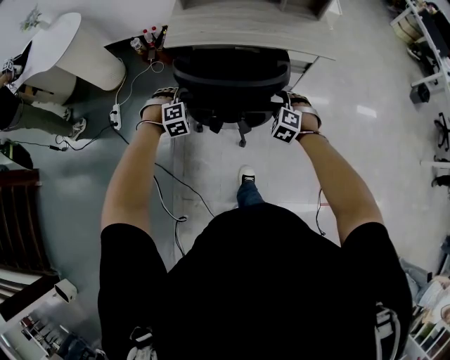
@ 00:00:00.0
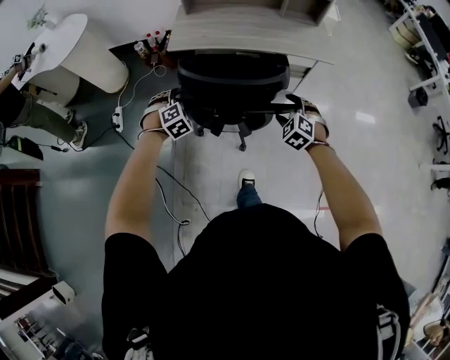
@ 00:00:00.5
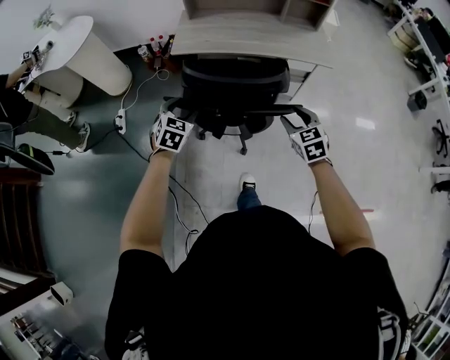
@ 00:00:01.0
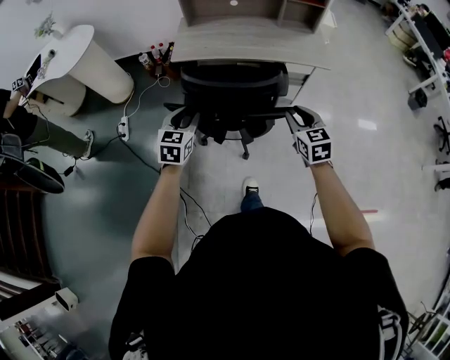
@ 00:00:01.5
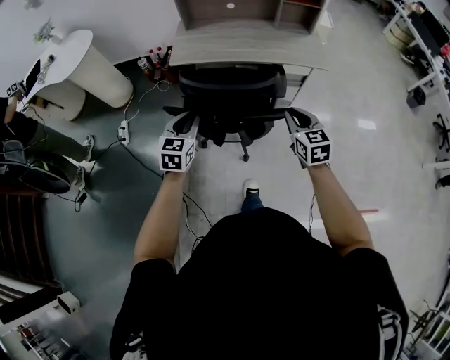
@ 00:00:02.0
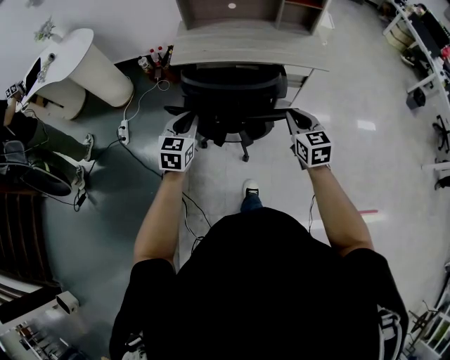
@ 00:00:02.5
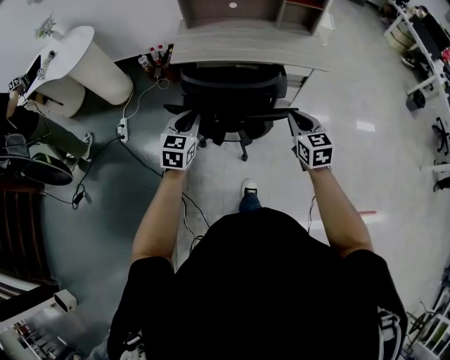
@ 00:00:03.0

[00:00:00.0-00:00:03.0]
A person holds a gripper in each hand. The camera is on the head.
00:00:00.0 to 00:00:01.5: The two grippers go about 15 cm upward and backward. The left gripper rolls counterclockwise, seen from behind, by approximately 60 degrees. Meanwhile the right gripper rotates around the line of its fingers by roughly 60 degrees, clockwise from behind, and closes its fingers.
00:00:01.5 to 00:00:03.0: The grippers move only a little.

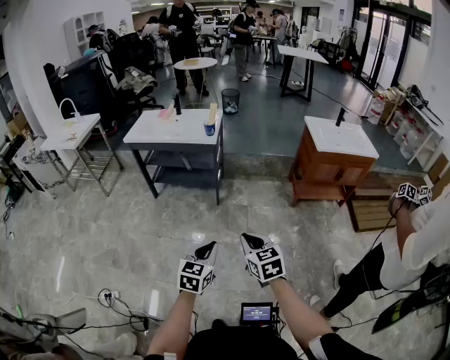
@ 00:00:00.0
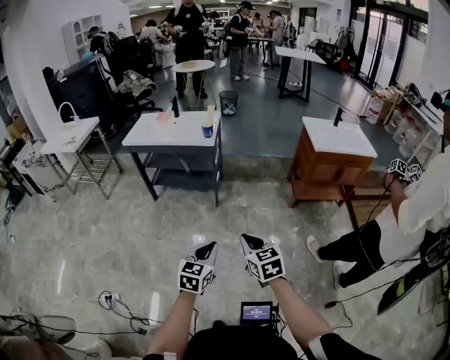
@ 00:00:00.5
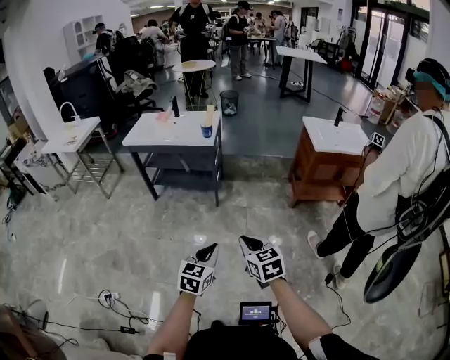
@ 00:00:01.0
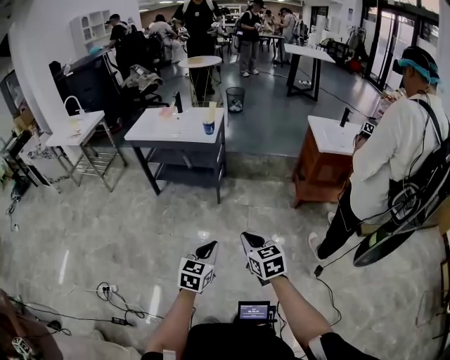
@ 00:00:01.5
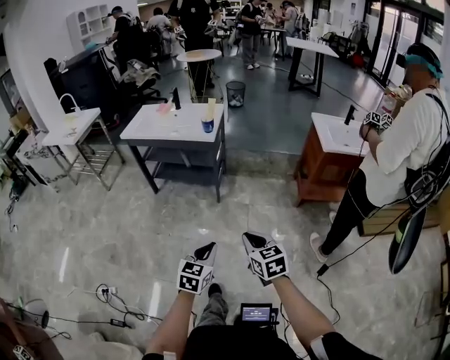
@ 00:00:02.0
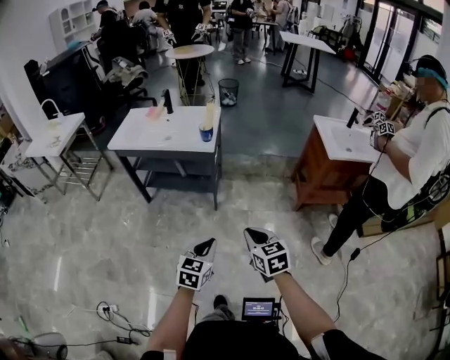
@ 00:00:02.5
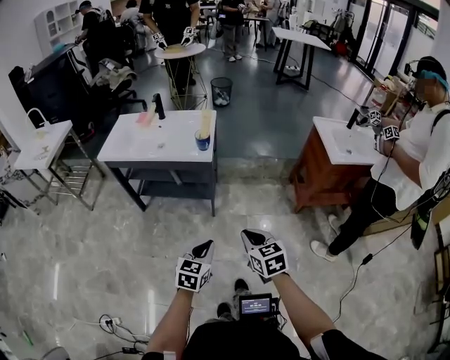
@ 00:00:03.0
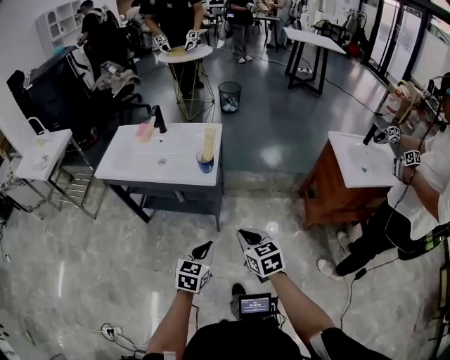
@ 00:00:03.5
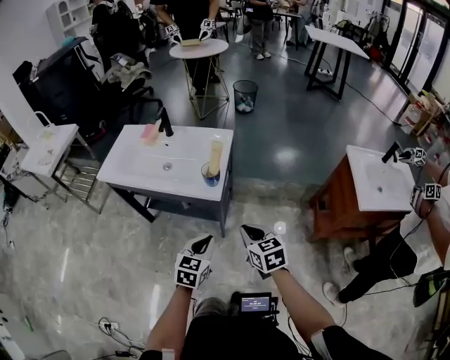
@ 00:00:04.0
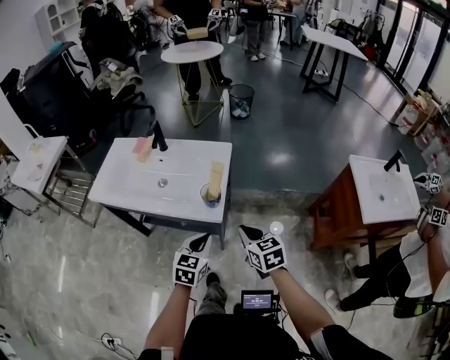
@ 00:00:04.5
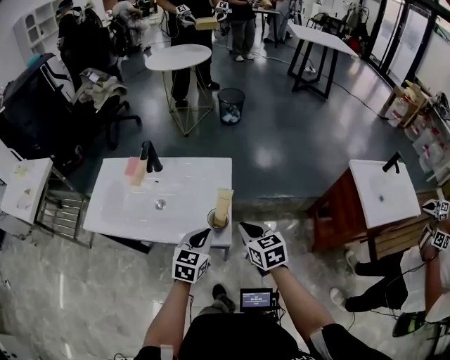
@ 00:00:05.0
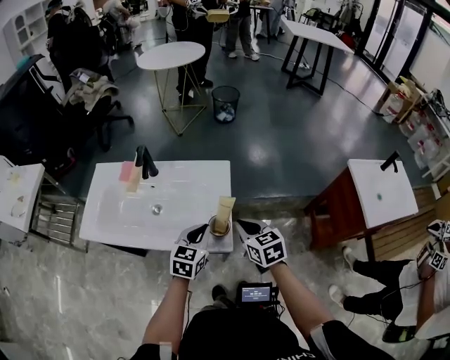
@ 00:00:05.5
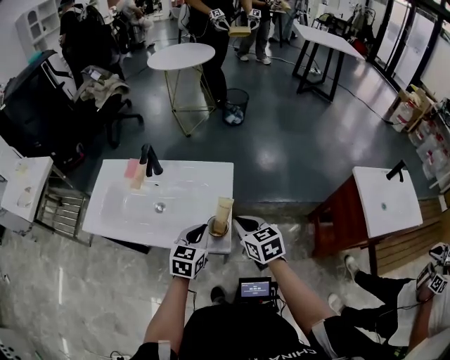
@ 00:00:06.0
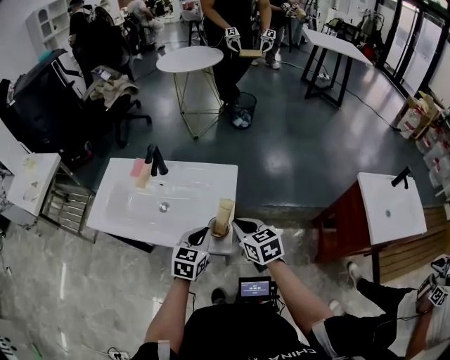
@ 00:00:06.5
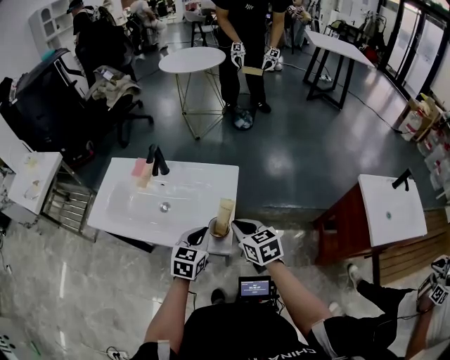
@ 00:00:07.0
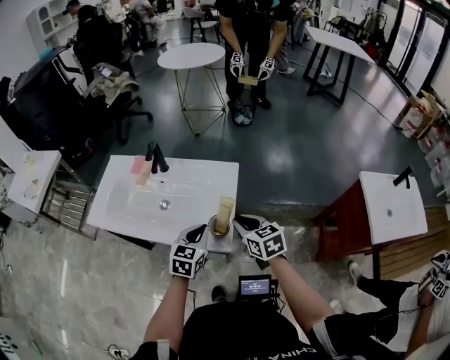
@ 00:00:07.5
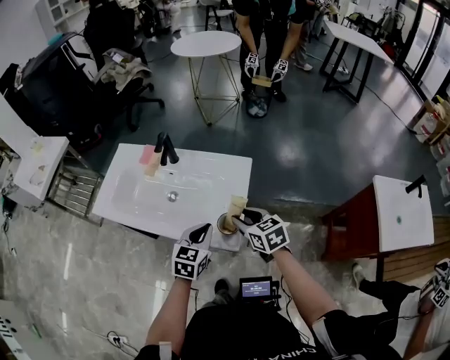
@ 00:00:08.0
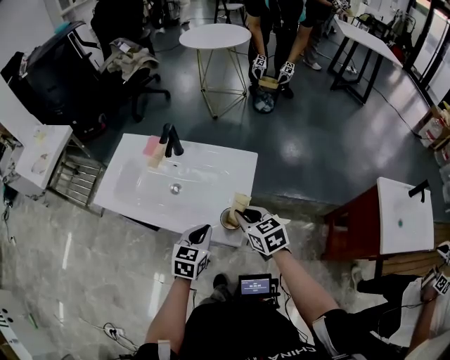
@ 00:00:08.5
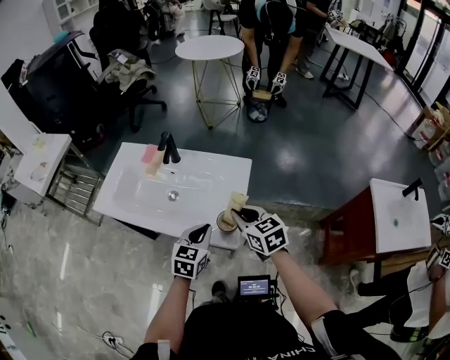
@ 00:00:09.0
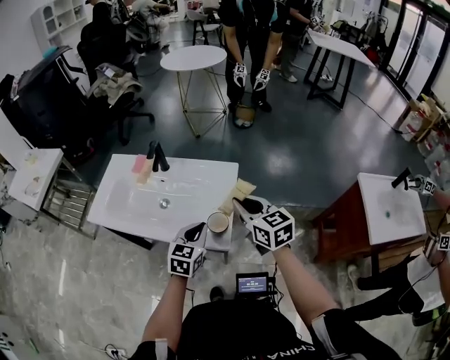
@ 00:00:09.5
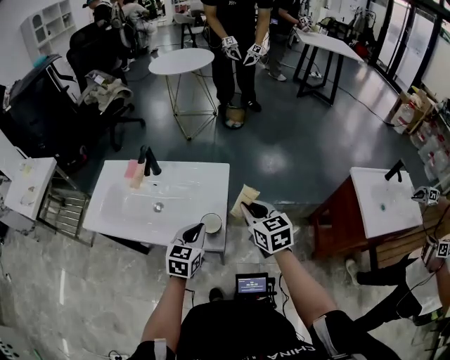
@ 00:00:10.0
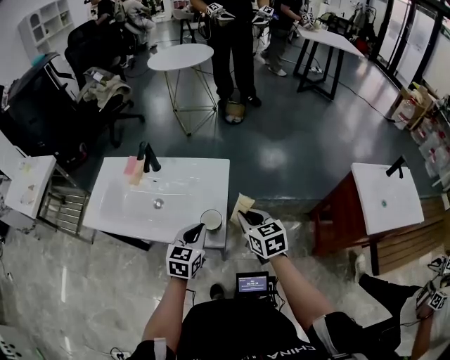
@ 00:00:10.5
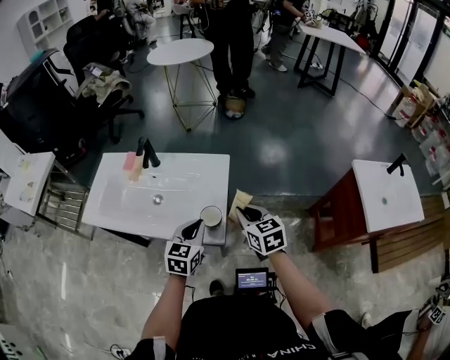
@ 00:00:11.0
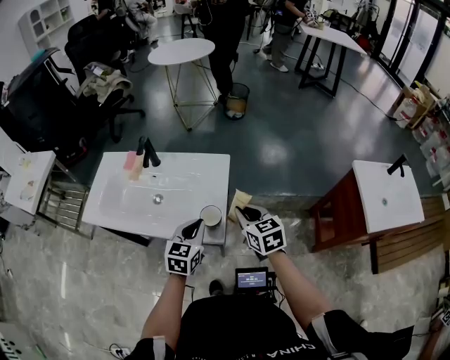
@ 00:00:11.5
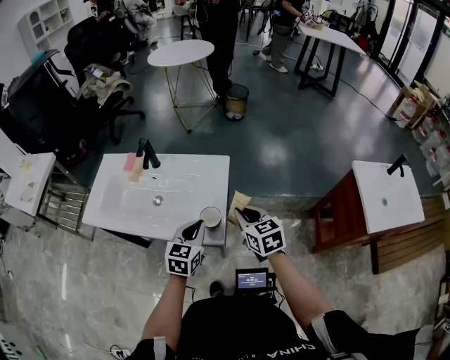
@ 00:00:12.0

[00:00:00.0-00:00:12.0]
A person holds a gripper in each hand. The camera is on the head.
00:00:00.0 to 00:00:02.0: The left gripper shifts approximately 5 cm forward; the right gripper heads forward and to the right, covering about 10 cm.
00:00:02.0 to 00:00:04.0: The pair of grippers is taken forward, approximately 50 cm.
00:00:04.0 to 00:00:06.0: Both grippers move forward, some 25 cm.
00:00:06.0 to 00:00:08.0: The right gripper opens up.
00:00:08.0 to 00:00:10.0: The right gripper moves upward and to the right, approximately 10 cm, and closes.
00:00:10.0 to 00:00:12.0: The right gripper moves some 5 cm.

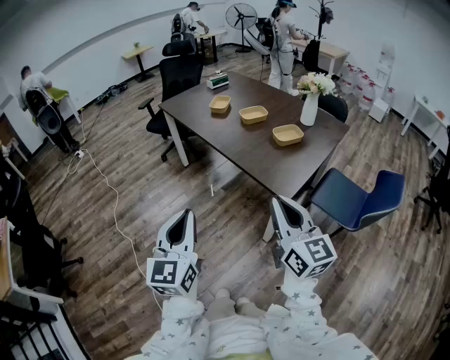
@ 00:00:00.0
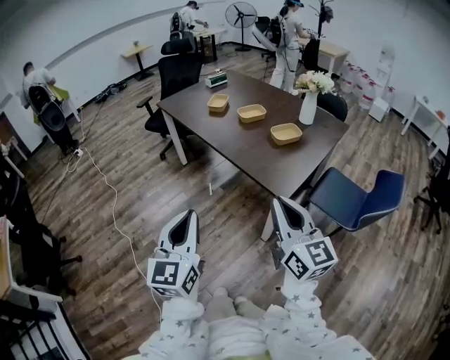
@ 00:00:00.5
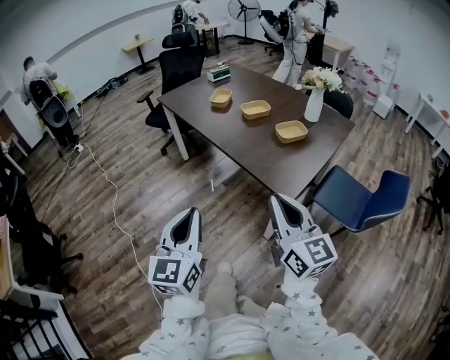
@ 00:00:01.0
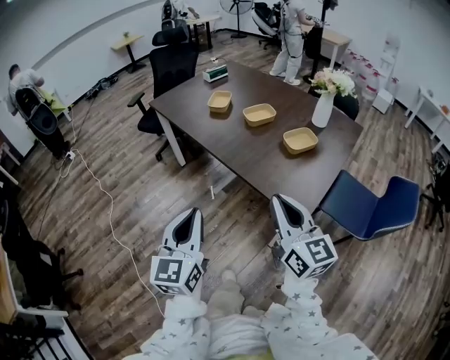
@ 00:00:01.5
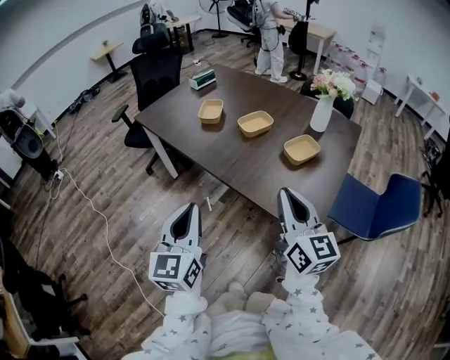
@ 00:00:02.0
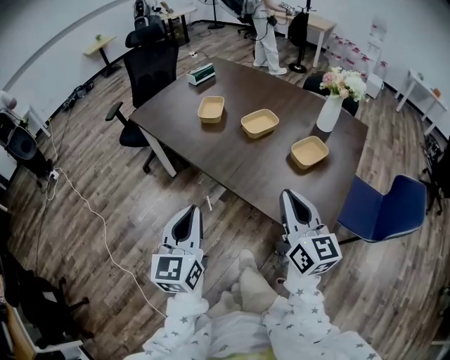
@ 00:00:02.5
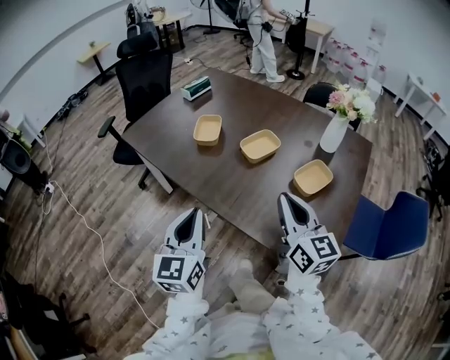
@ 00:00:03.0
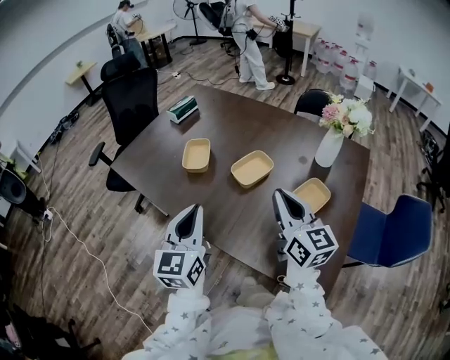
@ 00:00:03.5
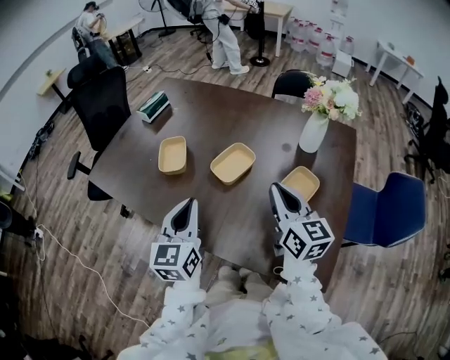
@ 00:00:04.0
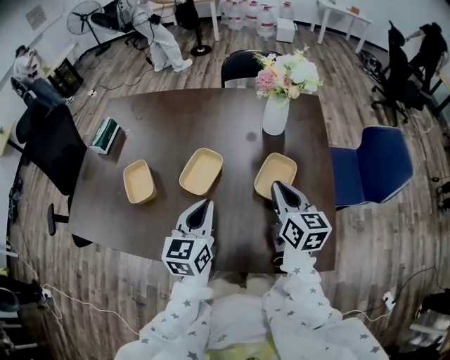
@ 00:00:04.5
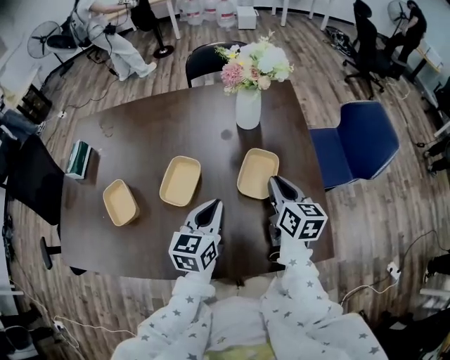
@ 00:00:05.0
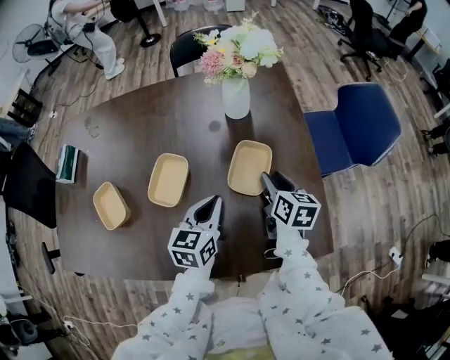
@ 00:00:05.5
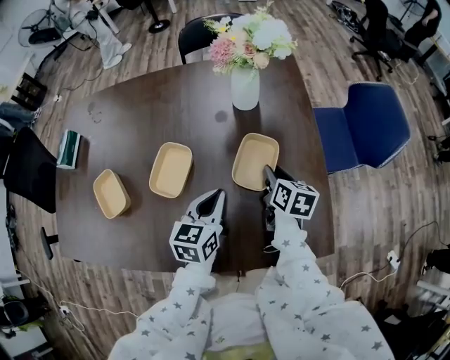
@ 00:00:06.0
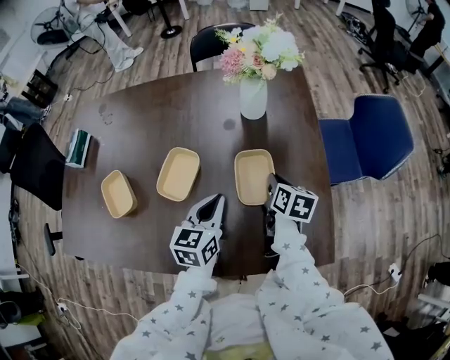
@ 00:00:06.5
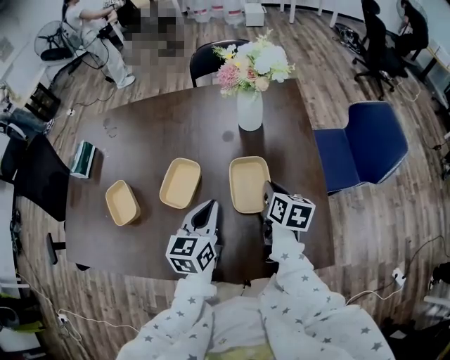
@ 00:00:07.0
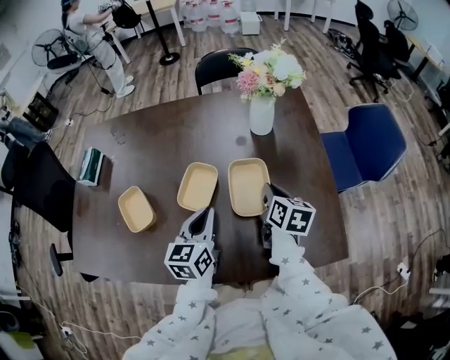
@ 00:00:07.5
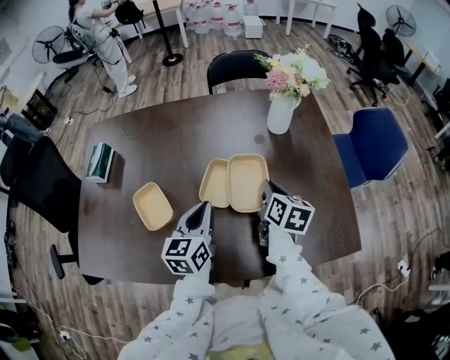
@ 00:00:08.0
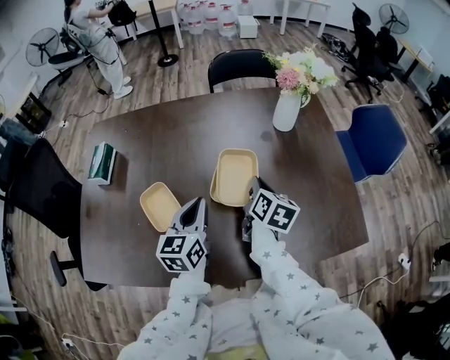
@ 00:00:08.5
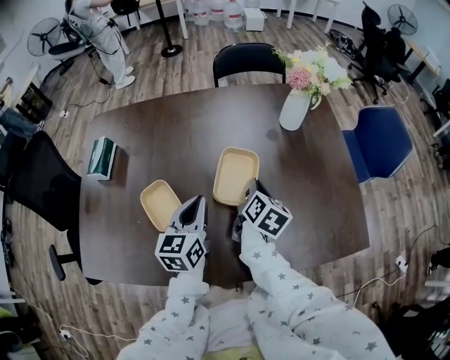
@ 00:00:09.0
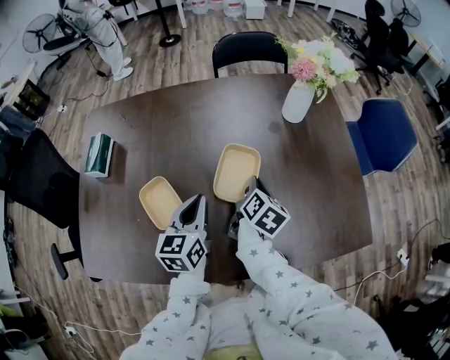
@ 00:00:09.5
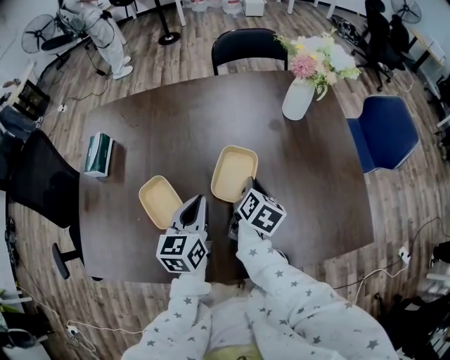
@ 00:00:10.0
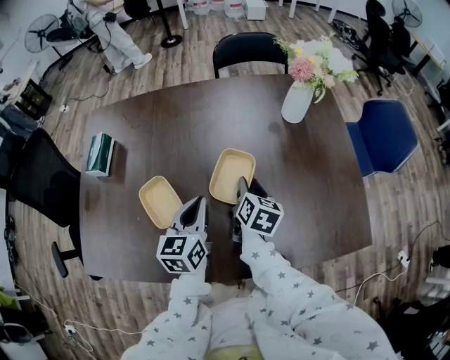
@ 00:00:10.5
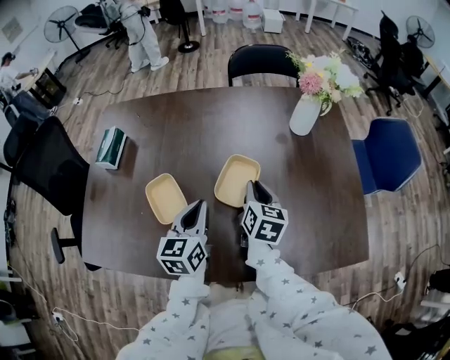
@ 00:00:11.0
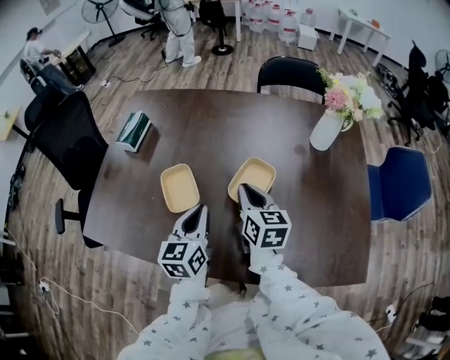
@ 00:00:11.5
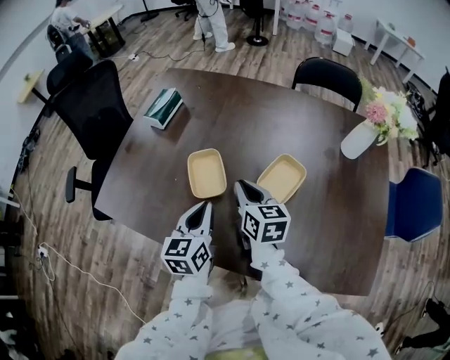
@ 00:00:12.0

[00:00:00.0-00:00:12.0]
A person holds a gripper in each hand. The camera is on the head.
00:00:00.0 to 00:00:02.0: Both grippers travel together forward, some 25 cm.
00:00:02.0 to 00:00:04.0: Both grippers travel together forward, about 30 cm.
00:00:04.0 to 00:00:06.0: The right gripper shifts some 20 cm downward, angles its fingers downward, by some 30 degrees, and opens up; the left gripper shifts by about 25 cm, and rotates about 50 degrees.
00:00:06.0 to 00:00:08.0: The right gripper goes approximately 15 cm to the left and upward, and closes up. Meanwhile the left gripper travels to the left by approximately 20 cm.
00:00:08.0 to 00:00:10.0: The left gripper shifts approximately 5 cm to the left; the right gripper moves to the left and downward, approximately 10 cm.
00:00:10.0 to 00:00:12.0: The right gripper shifts by roughly 20 cm, turns by approximately 60 degrees, and opens, then closes again. The left gripper moves some 15 cm, and swivels about 20 degrees.
